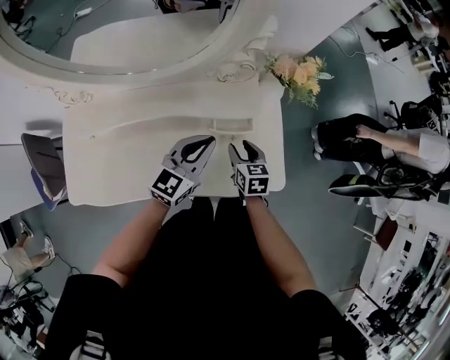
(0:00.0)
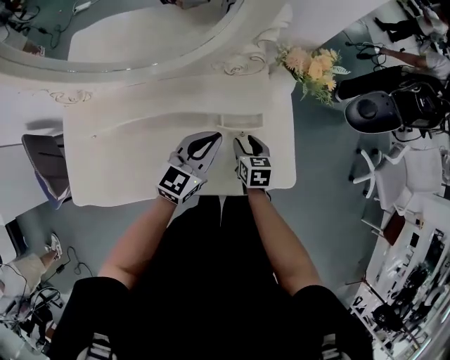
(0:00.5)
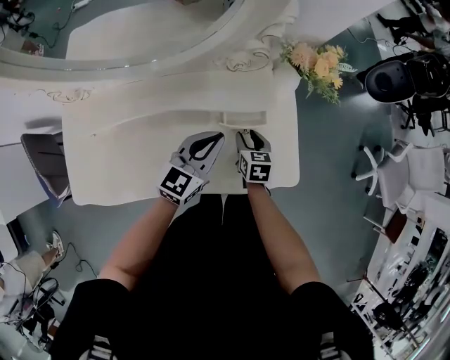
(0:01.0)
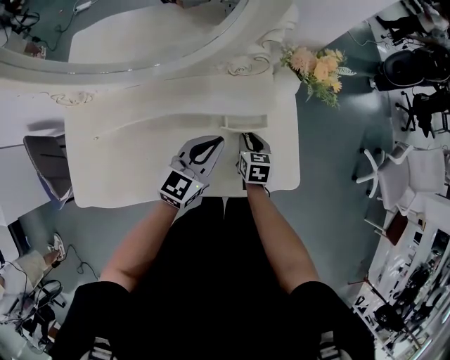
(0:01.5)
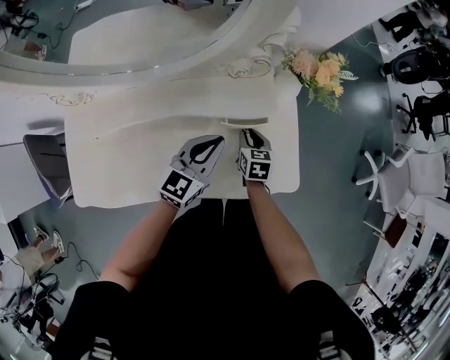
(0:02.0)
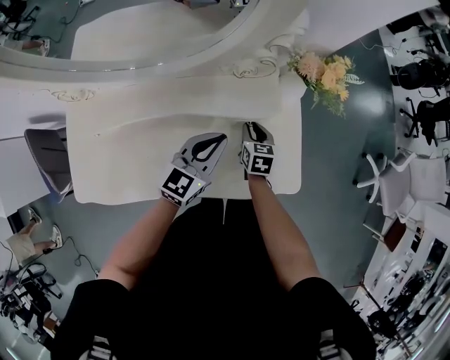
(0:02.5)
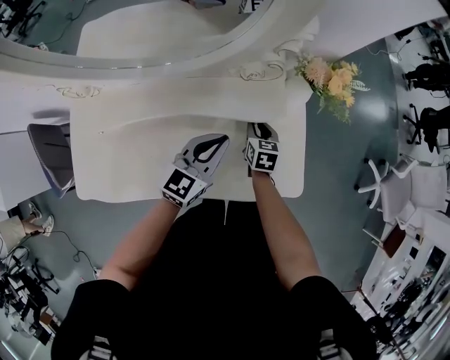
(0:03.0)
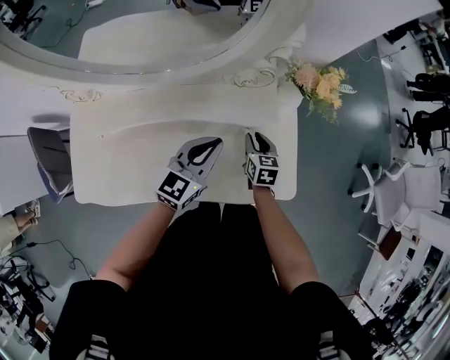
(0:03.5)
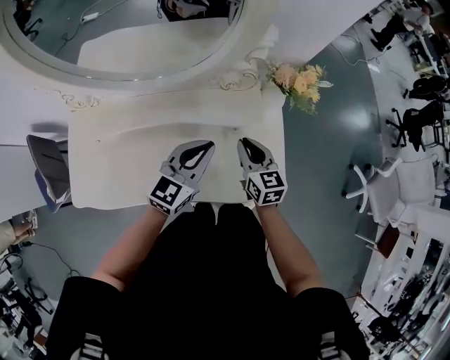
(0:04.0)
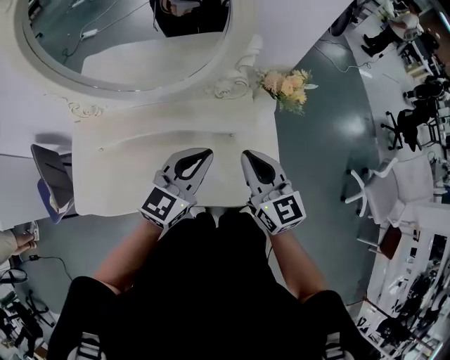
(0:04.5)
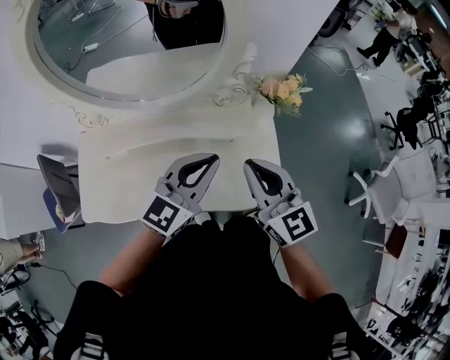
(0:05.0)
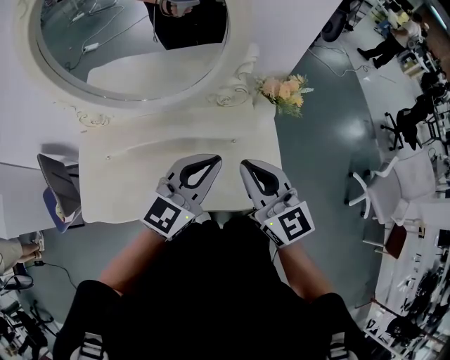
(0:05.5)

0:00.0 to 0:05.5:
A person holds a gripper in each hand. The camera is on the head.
0:00.0 to 0:02.0: The right gripper heads downward, covering roughly 5 cm.
0:02.0 to 0:03.5: There are only small adjustments of the grippers.
0:03.5 to 0:05.5: The right gripper shifts about 35 cm upward, angles its fingers upward, by about 40 degrees, and closes; the left gripper moves upward and backward, roughly 20 cm.

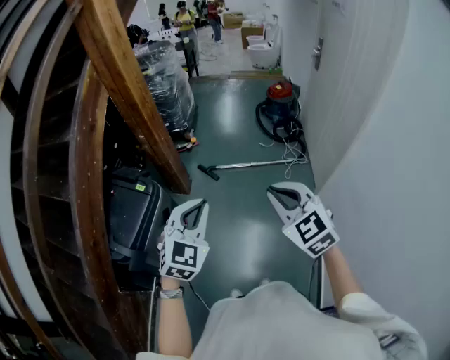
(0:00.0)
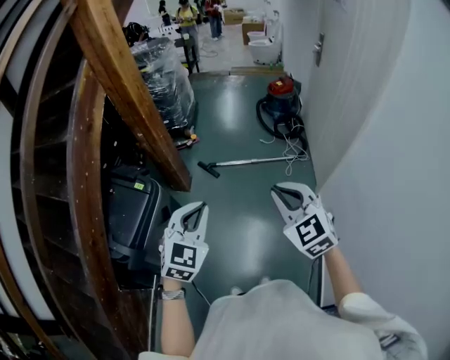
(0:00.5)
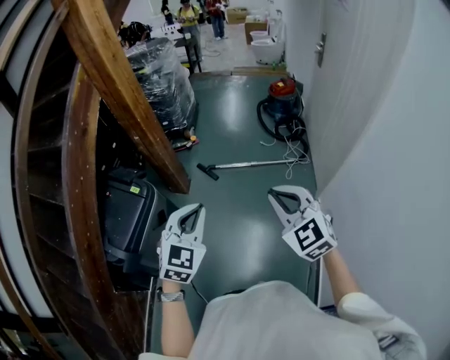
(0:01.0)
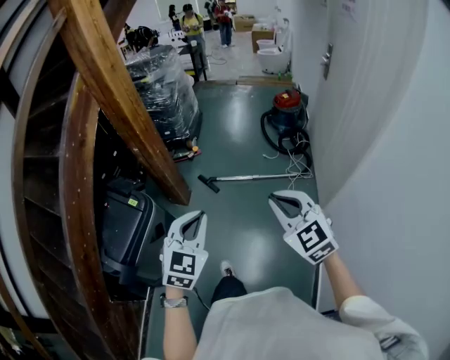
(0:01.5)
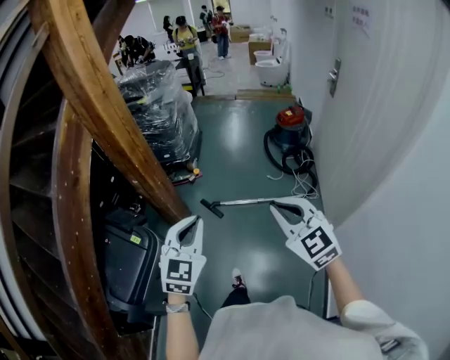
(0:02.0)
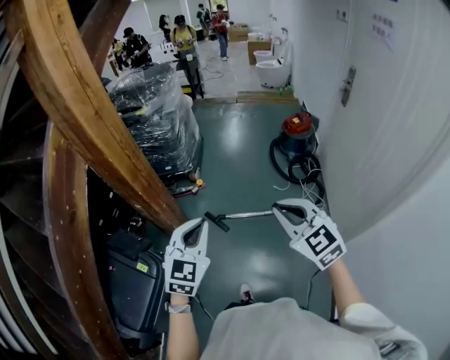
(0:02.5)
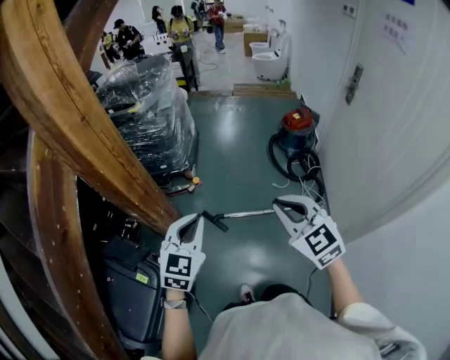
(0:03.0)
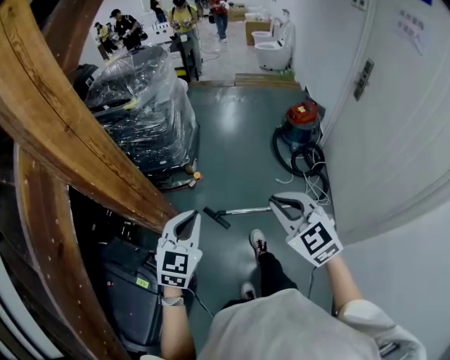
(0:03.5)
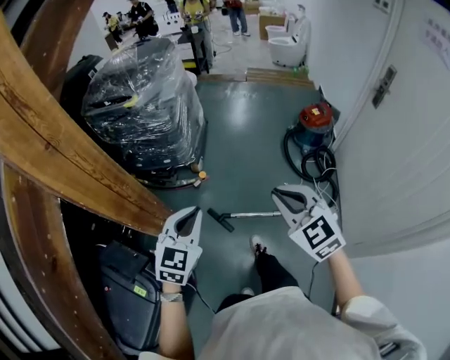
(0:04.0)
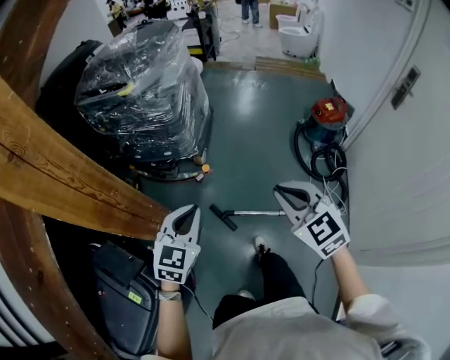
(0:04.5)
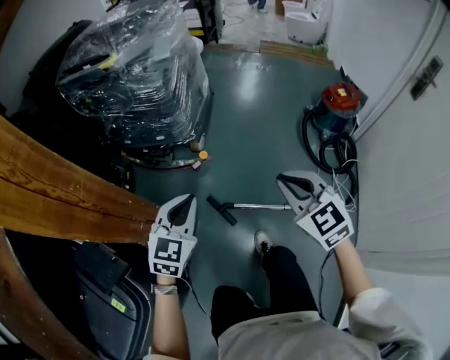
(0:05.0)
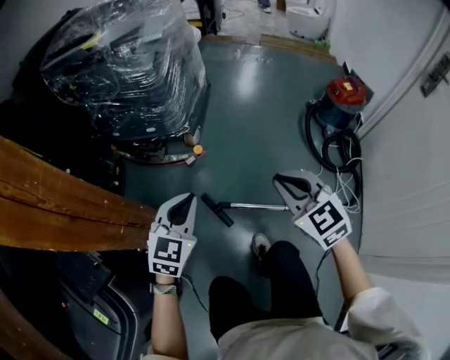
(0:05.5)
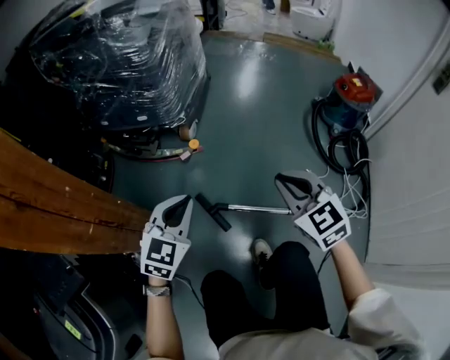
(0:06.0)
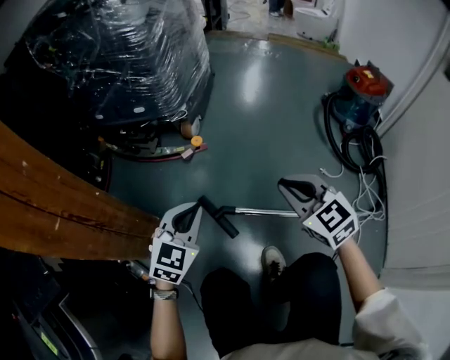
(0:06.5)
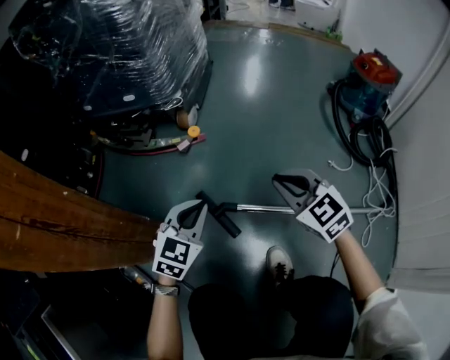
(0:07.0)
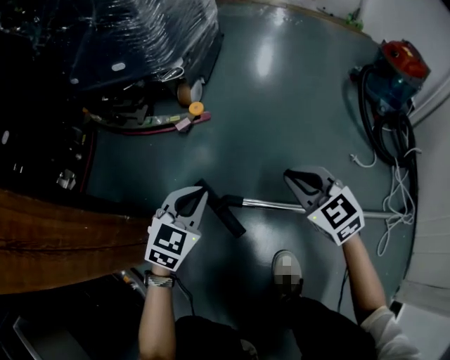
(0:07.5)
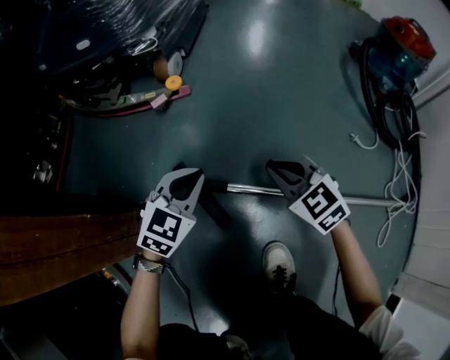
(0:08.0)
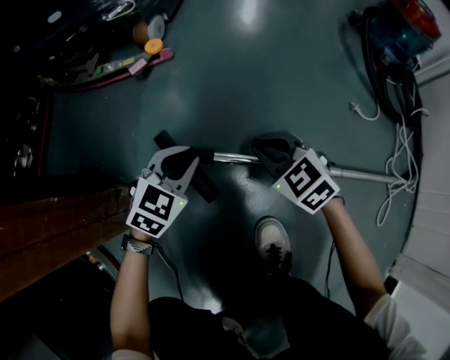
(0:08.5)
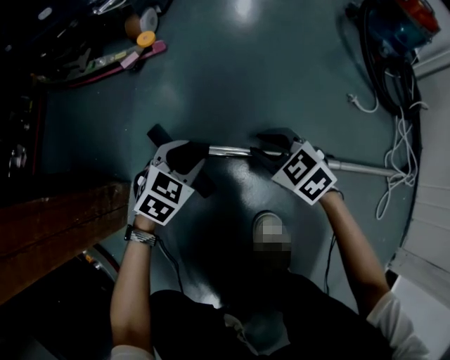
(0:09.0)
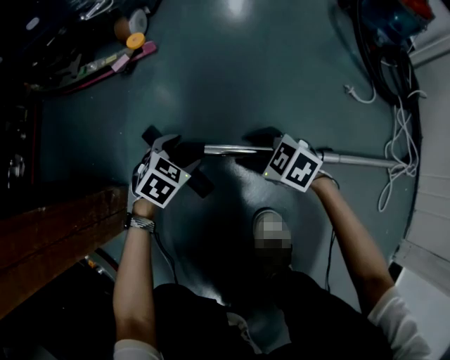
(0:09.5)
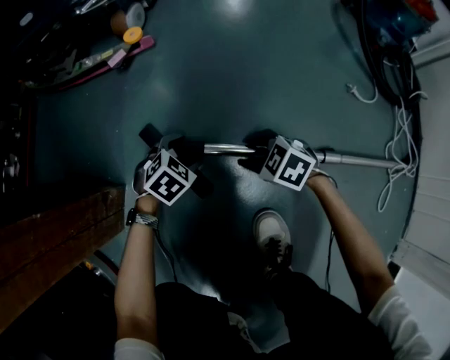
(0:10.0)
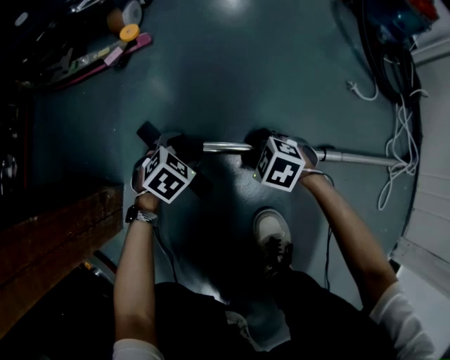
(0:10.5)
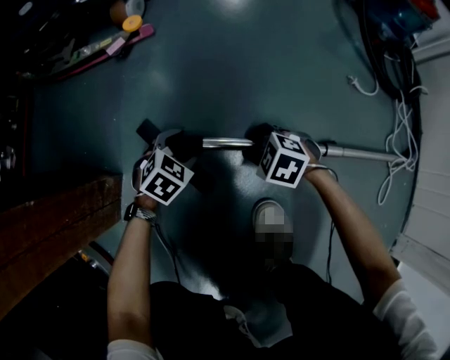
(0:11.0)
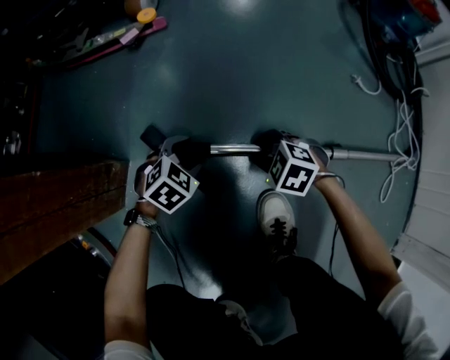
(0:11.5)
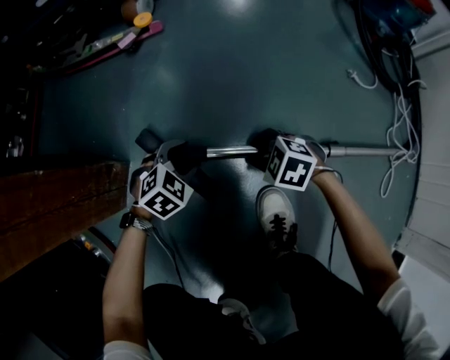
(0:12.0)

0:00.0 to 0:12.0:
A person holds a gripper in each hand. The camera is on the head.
0:00.0 to 0:02.0: Both grippers move forward, some 25 cm.
0:02.0 to 0:04.0: Both grippers travel together forward, roughly 40 cm.
0:04.0 to 0:06.0: The right gripper shifts approximately 50 cm downward and forward. Meanwhile the left gripper is displaced downward by about 40 cm.
0:06.0 to 0:08.0: The grippers both shift downward by some 40 cm.
0:08.0 to 0:10.0: Both grippers travel together downward, roughly 20 cm. The right gripper rotates approximately 30 degrees, and opens its fingers. Meanwhile the left gripper angles its fingers downward, by roughly 30 degrees, and opens up.
0:10.0 to 0:12.0: Both grippers travel together backward, about 5 cm.

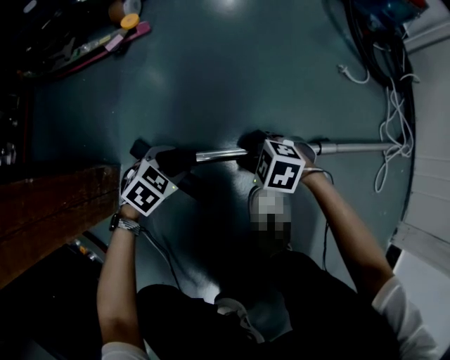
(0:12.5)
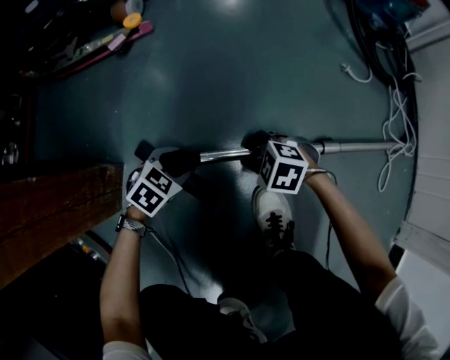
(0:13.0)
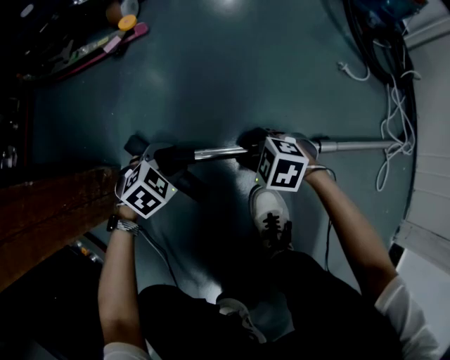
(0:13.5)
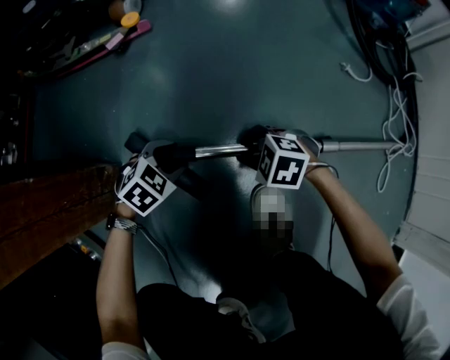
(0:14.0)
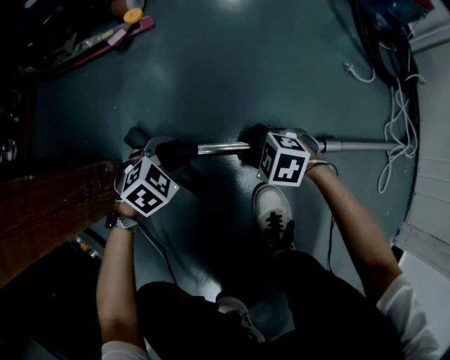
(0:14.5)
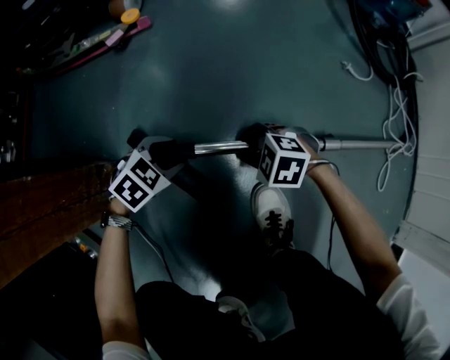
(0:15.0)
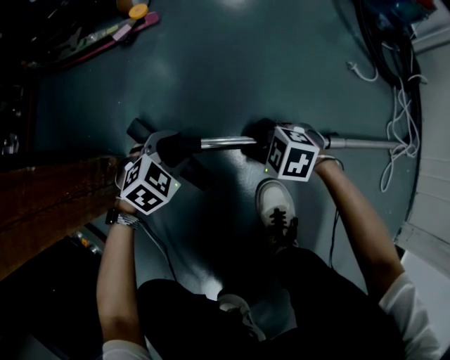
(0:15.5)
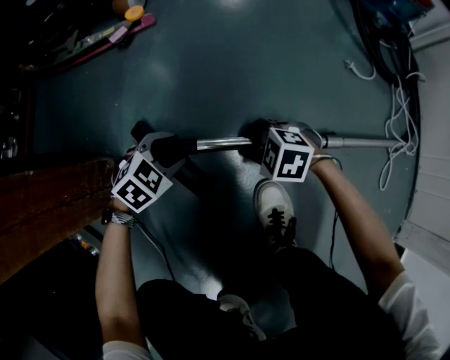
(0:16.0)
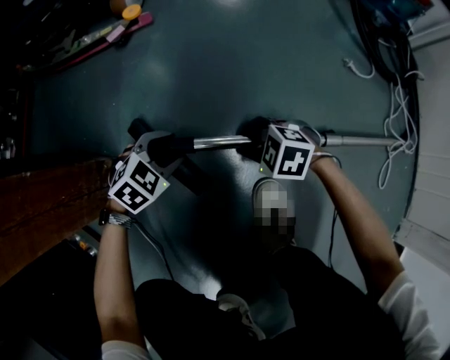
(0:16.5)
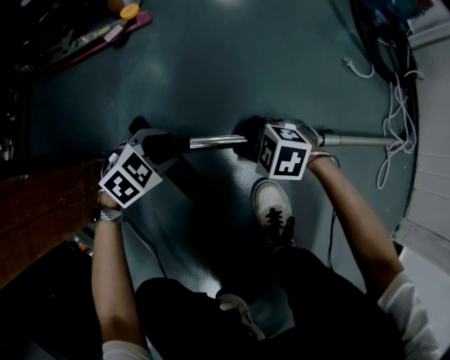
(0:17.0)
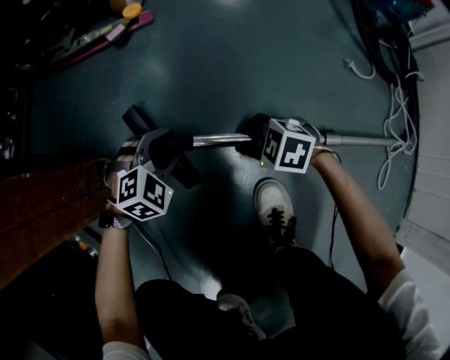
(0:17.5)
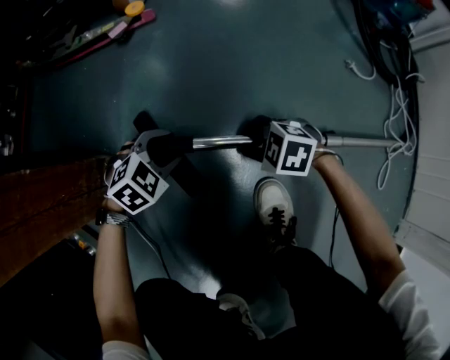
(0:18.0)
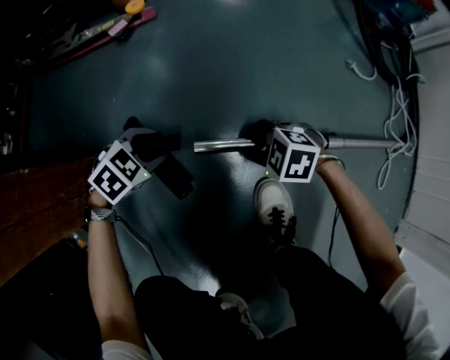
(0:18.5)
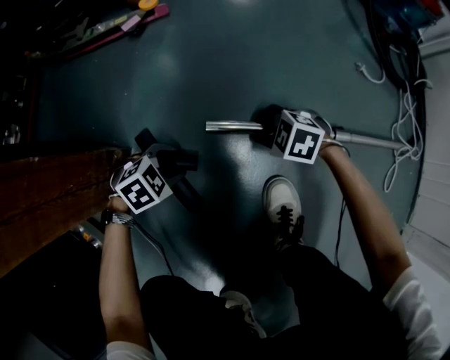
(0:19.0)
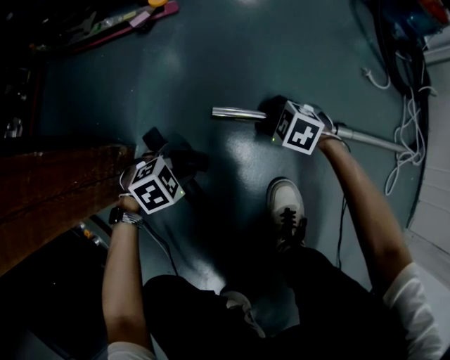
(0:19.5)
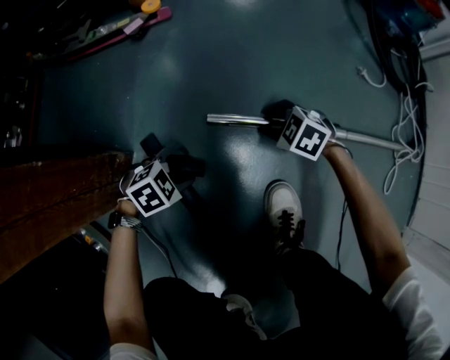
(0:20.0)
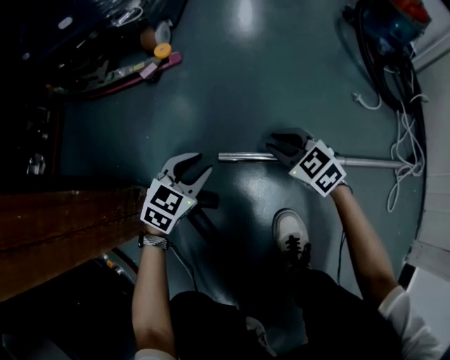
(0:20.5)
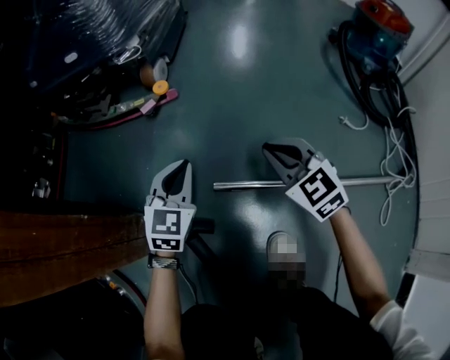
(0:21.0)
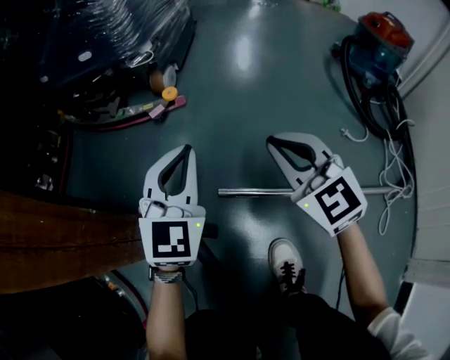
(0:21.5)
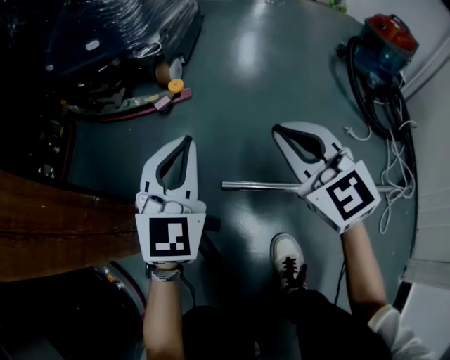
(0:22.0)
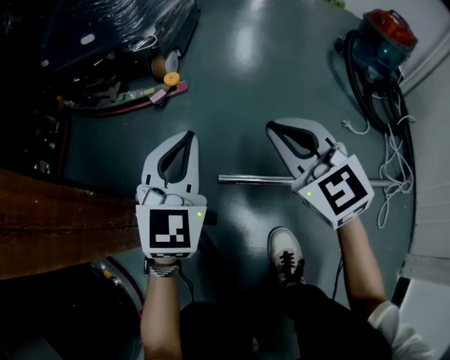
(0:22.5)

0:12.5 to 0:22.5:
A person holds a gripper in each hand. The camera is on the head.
0:12.5 to 0:16.5: The grippers stay close to where they were, moving slightly.
0:16.5 to 0:18.5: The grippers move only a little.
0:18.5 to 0:20.5: The right gripper moves some 15 cm, and swivels about 40 degrees, while the left gripper moves upward, about 5 cm, and rotates approximately 30 degrees.
0:20.5 to 0:22.5: Both grippers travel together upward, roughly 25 cm. The left gripper swivels roughly 40 degrees, and closes, while the right gripper turns by some 30 degrees, and closes up.
